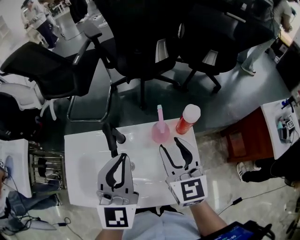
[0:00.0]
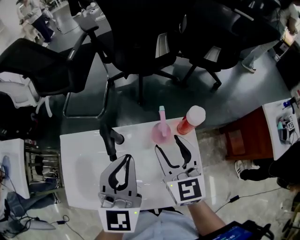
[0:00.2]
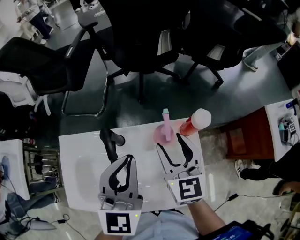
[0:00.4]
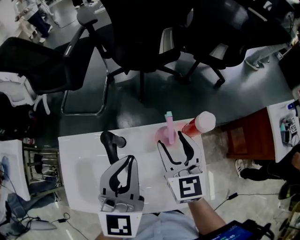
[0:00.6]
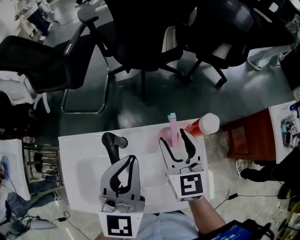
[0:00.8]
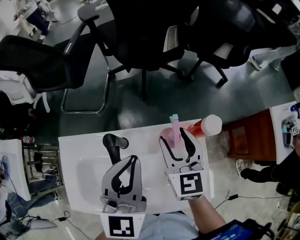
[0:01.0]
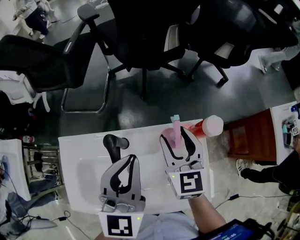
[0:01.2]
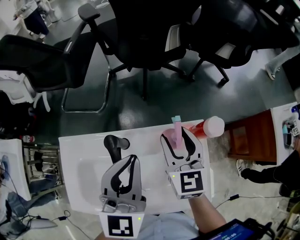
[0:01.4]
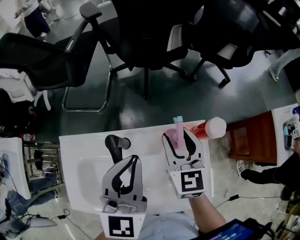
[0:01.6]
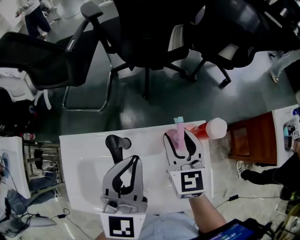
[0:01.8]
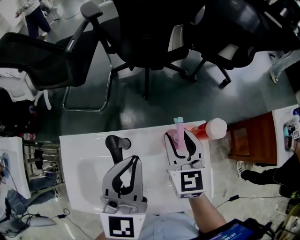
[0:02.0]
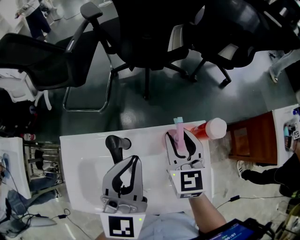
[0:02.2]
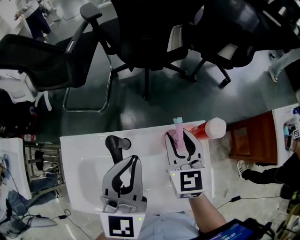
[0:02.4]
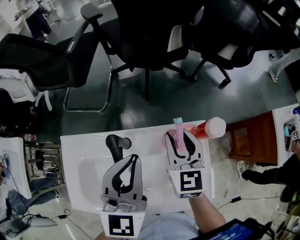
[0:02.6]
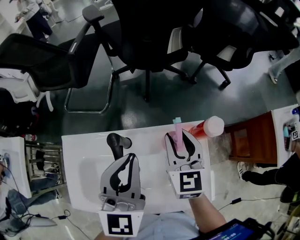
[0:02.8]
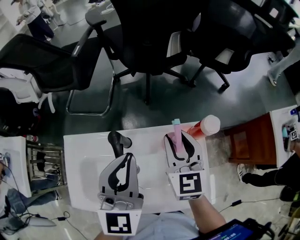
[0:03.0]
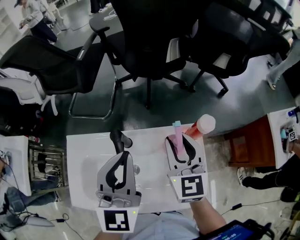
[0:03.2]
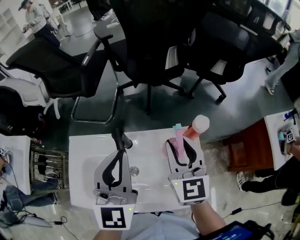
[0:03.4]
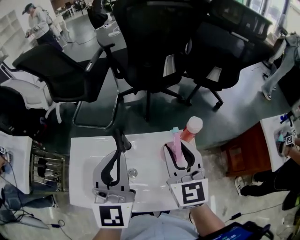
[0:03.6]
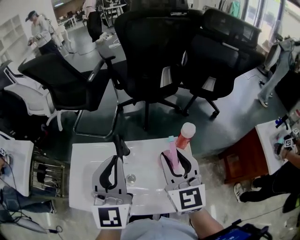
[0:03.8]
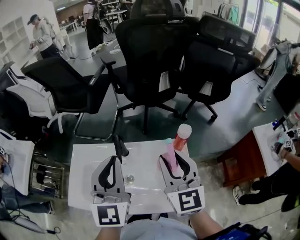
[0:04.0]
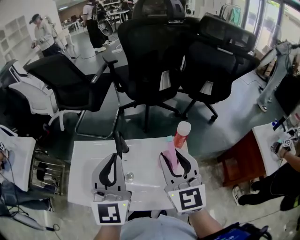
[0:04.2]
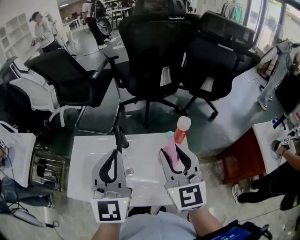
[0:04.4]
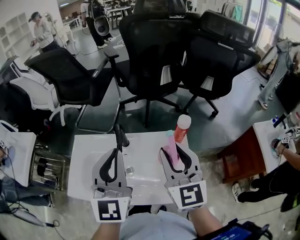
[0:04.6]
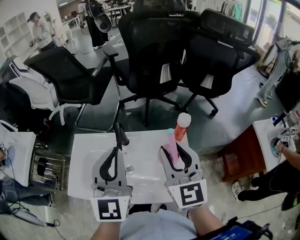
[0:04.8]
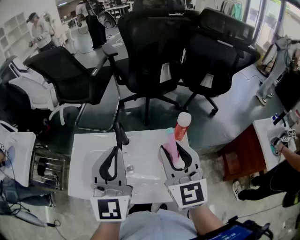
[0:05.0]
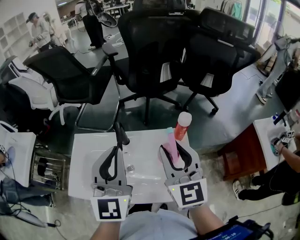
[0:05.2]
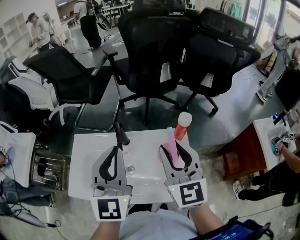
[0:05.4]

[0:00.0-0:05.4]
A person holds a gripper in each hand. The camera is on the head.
0:00.0 to 0:01.4: The left gripper goes some 5 cm forward, while the right gripper moves forward and downward, approximately 10 cm.
0:01.4 to 0:02.8: The two grippers keep their place.
0:02.8 to 0:04.0: The two grippers go about 15 cm backward and upward.
0:04.0 to 0:05.4: There are only small adjustments of the grippers.

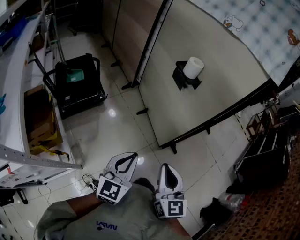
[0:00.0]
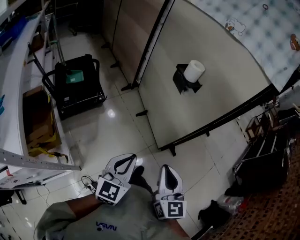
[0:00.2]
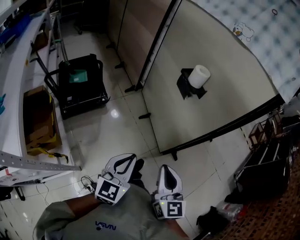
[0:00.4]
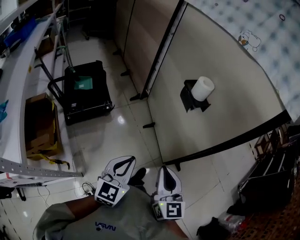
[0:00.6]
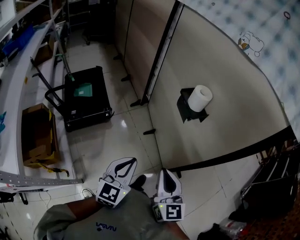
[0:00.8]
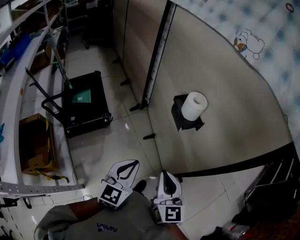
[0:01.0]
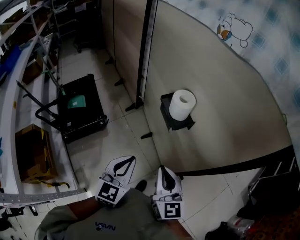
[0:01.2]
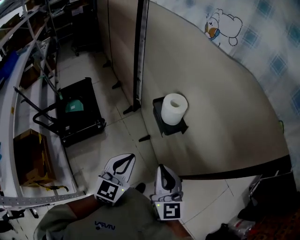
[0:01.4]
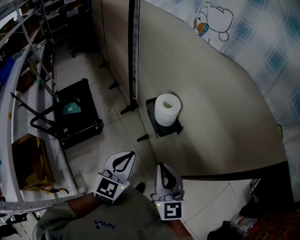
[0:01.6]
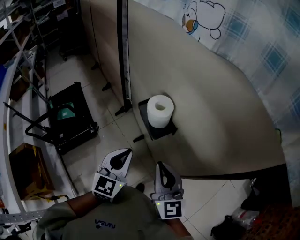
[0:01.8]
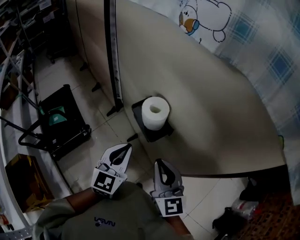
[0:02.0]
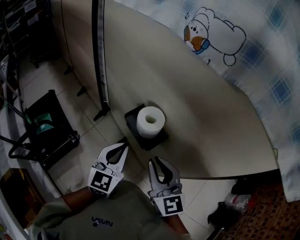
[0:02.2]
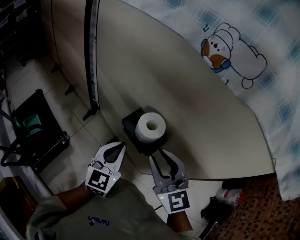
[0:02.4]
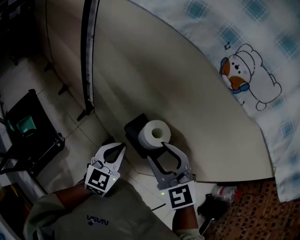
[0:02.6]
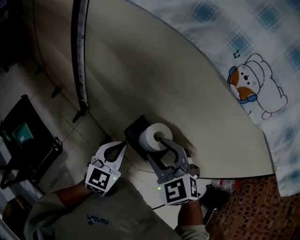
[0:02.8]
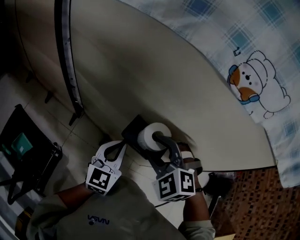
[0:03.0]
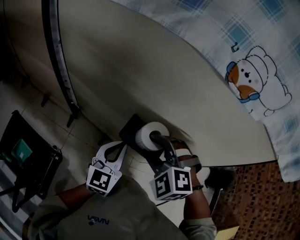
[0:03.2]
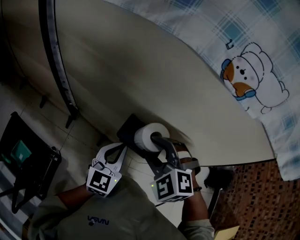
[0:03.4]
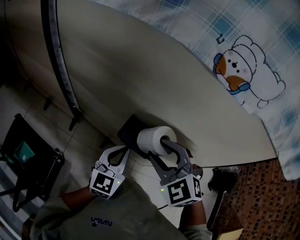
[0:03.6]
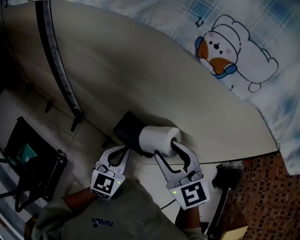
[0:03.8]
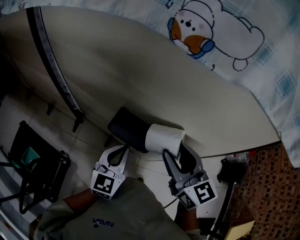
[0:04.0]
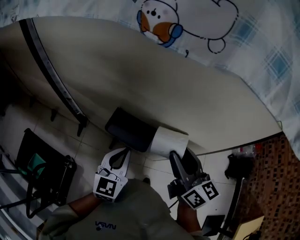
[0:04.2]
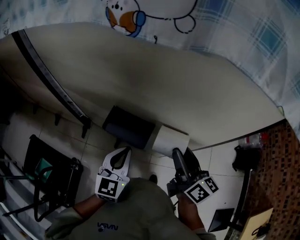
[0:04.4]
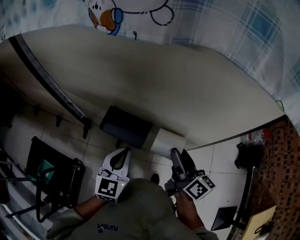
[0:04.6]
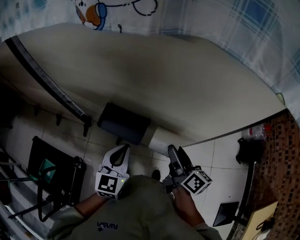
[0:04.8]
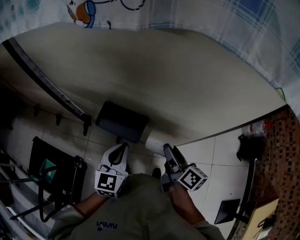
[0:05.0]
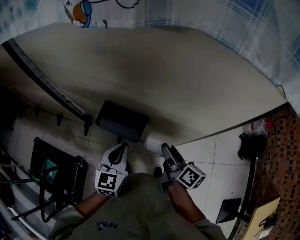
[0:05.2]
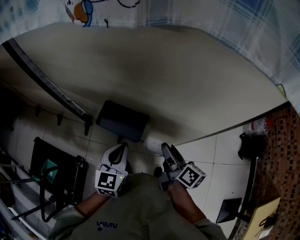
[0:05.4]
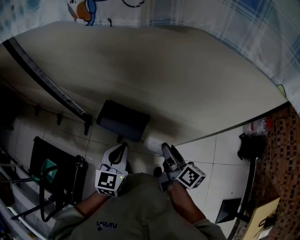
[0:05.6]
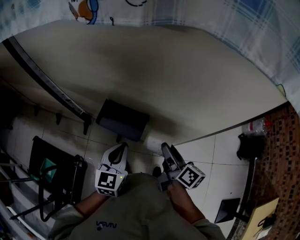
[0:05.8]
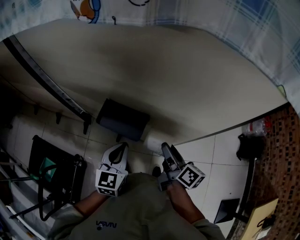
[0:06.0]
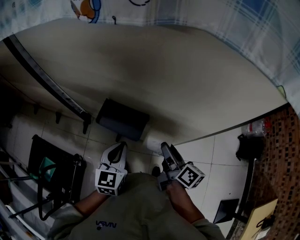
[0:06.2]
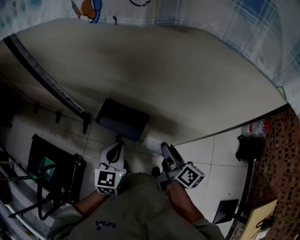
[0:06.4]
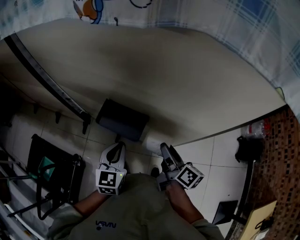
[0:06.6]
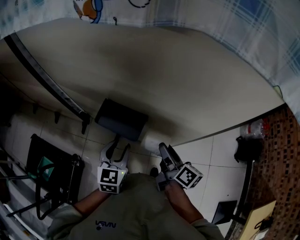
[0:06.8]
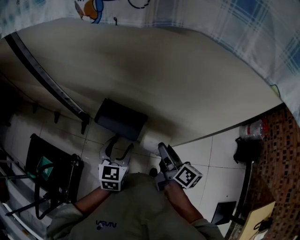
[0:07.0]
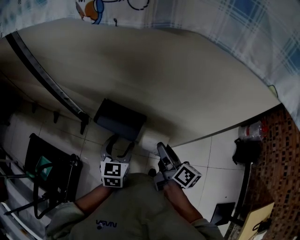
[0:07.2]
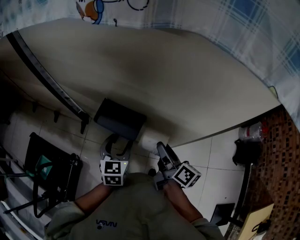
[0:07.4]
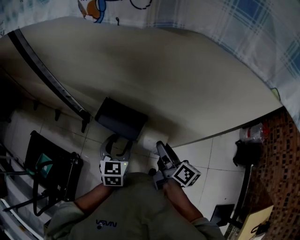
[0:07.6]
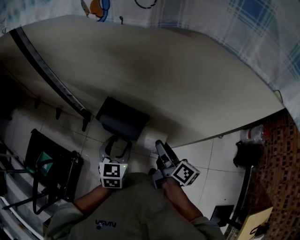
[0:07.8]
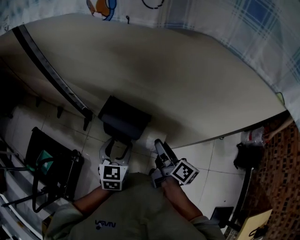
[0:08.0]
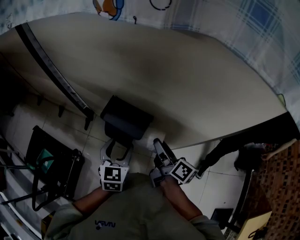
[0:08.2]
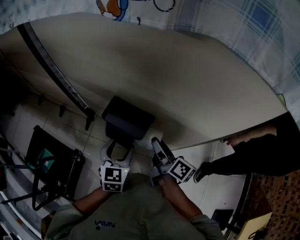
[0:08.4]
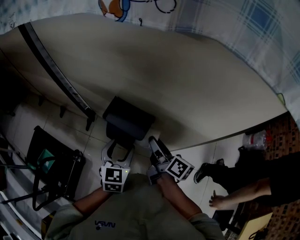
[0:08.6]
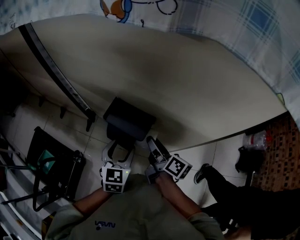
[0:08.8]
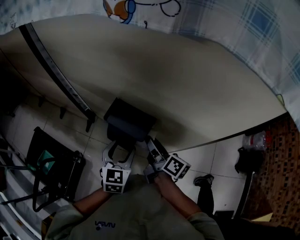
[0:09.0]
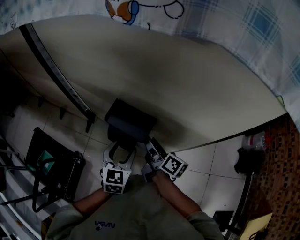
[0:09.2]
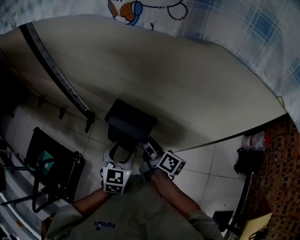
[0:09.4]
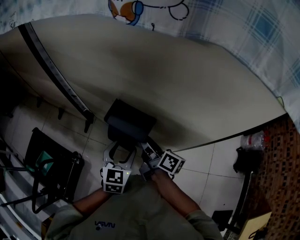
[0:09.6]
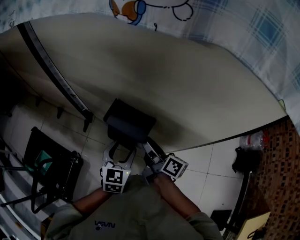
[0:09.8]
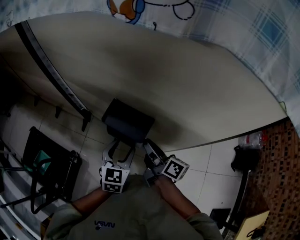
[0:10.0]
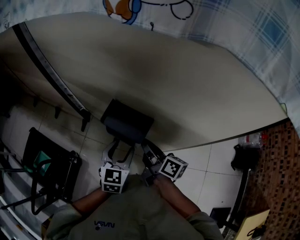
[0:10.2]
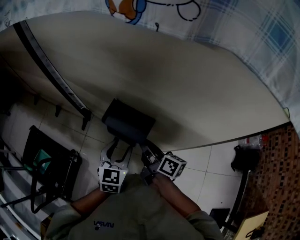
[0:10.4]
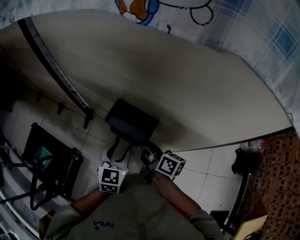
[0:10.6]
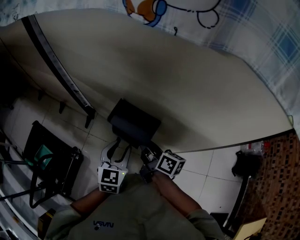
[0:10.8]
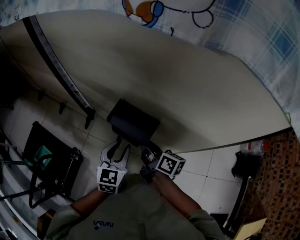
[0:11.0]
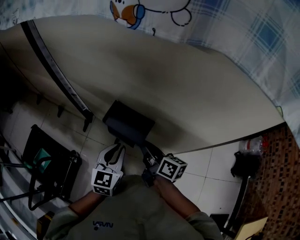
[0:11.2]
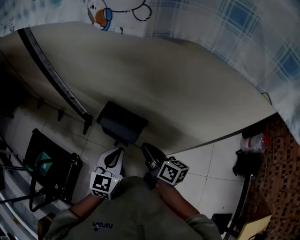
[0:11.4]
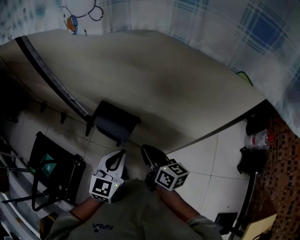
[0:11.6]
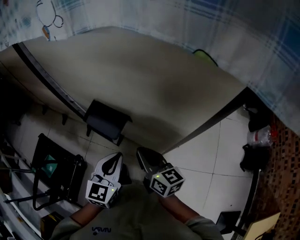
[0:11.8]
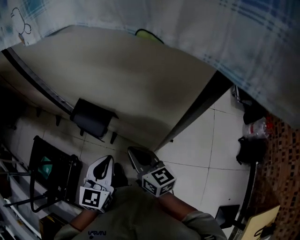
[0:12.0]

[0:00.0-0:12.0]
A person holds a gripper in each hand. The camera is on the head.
0:00.0 to 0:01.6: Both grippers travel together forward, some 35 cm.
0:01.6 to 0:03.0: The left gripper ends up about 20 cm from where it was, and swivels some 30 degrees; the right gripper ends up some 20 cm from where it was, angles its fingers downward, by about 50 degrees, and opens up.
0:03.0 to 0:04.4: The right gripper moves to the right, some 20 cm, and twists roughly 90 degrees clockwise, seen from behind. The left gripper is displaced to the right by roughly 10 cm.
0:04.4 to 0:06.0: The right gripper is displaced downward by about 10 cm, and changes its angle by approximately 20 degrees.
0:06.0 to 0:07.6: The left gripper opens up.
0:07.6 to 0:09.0: The right gripper shifts roughly 5 cm to the left.
0:09.0 to 0:10.4: The right gripper closes its fingers.
0:10.4 to 0:12.0: The right gripper goes some 15 cm backward and to the right, and swivels about 30 degrees; the left gripper moves backward, to the right and upward, roughly 15 cm, and closes.

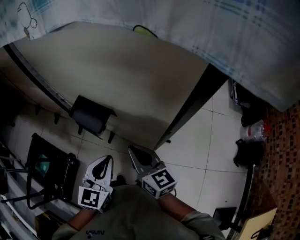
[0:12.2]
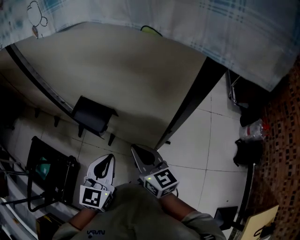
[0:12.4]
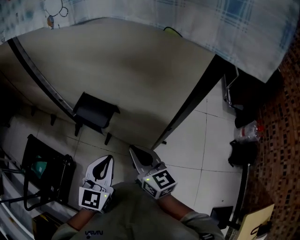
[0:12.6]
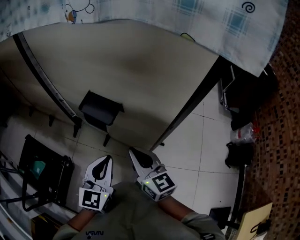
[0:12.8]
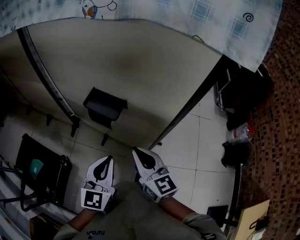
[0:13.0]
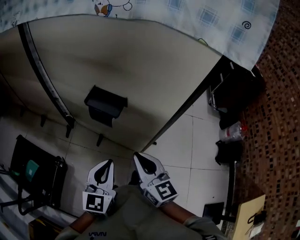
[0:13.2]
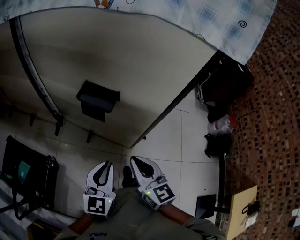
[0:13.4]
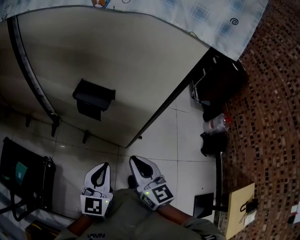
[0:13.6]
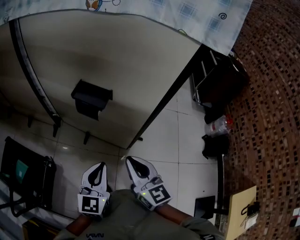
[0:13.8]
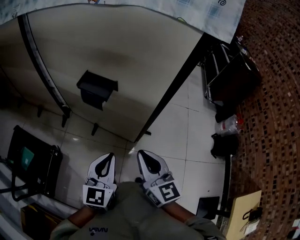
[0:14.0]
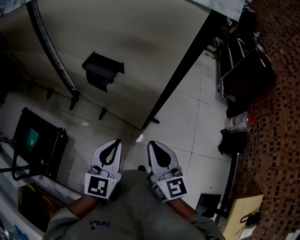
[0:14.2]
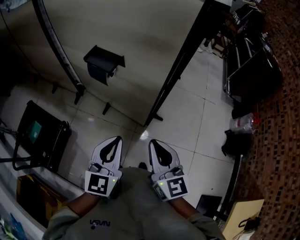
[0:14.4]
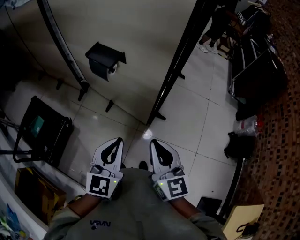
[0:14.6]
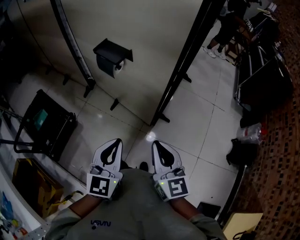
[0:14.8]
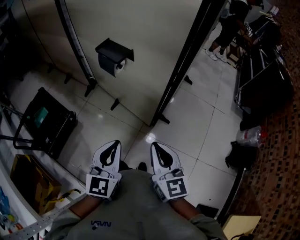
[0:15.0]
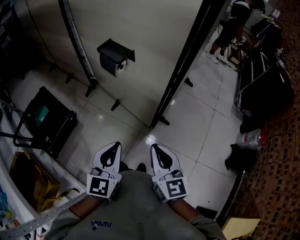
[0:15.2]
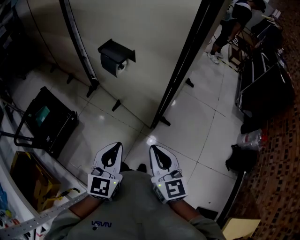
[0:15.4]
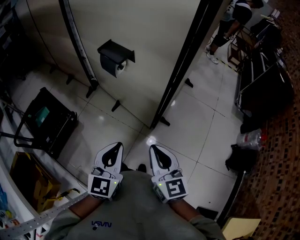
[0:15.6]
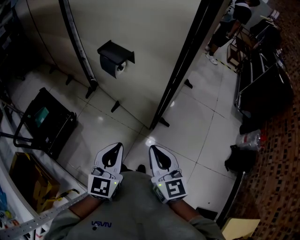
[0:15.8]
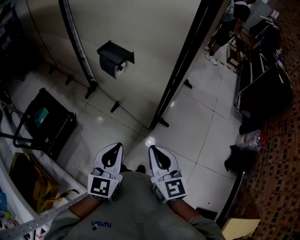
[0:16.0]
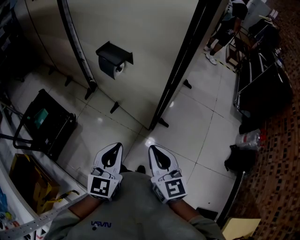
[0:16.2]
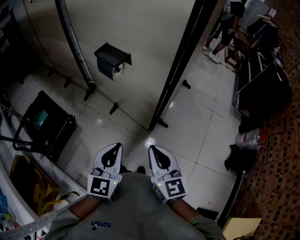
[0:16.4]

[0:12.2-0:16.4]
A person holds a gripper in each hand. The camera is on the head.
0:12.2 to 0:13.6: The grippers both shift backward and to the left by approximately 15 cm. The right gripper swivels roughly 20 degrees.
0:13.6 to 0:15.0: The two grippers go about 15 cm to the right and backward.
0:15.0 to 0:16.4: There are only small adjustments of the grippers.

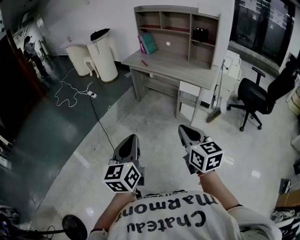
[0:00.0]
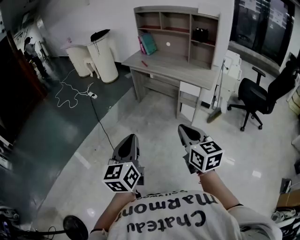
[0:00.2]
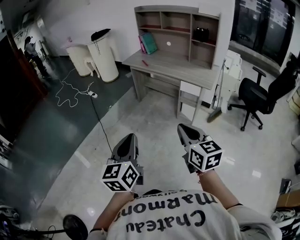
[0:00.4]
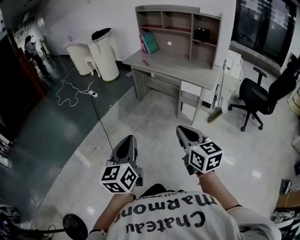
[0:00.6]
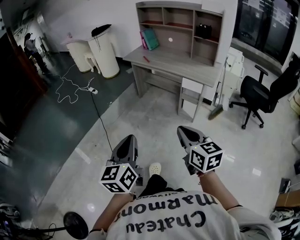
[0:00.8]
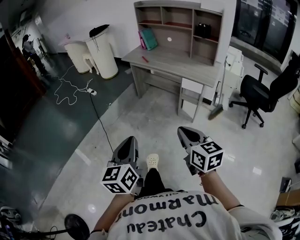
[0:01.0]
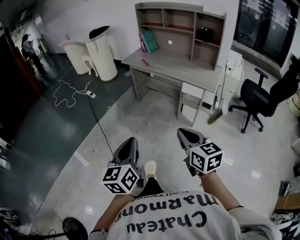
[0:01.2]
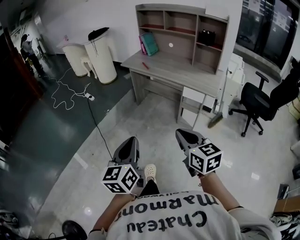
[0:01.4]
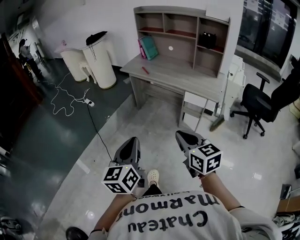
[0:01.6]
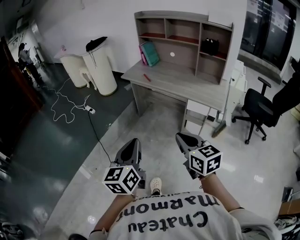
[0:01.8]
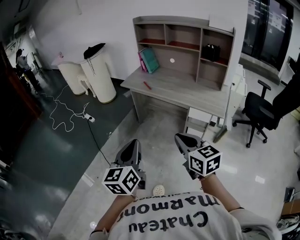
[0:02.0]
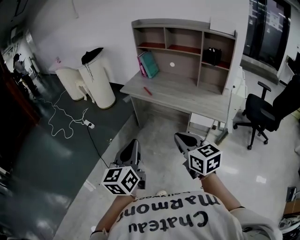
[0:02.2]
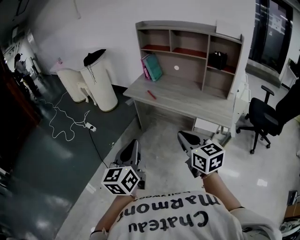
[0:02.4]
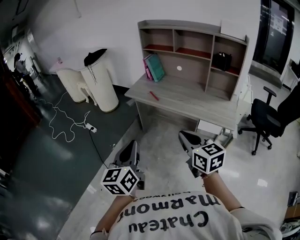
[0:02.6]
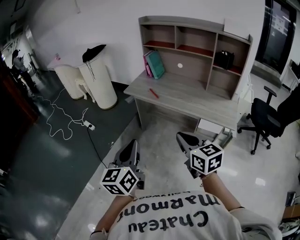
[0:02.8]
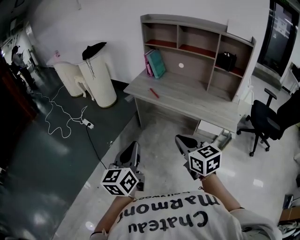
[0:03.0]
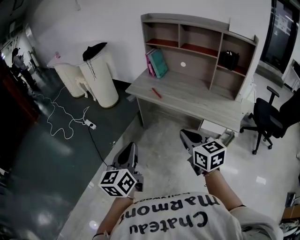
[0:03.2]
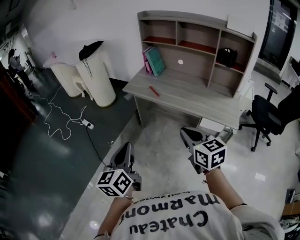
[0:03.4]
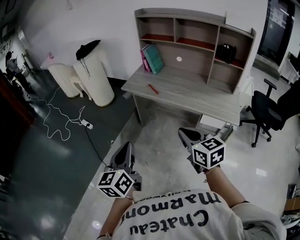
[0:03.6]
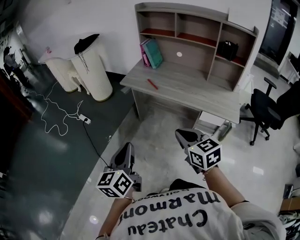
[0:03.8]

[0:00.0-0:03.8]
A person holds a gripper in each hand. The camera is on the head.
0:00.0 to 0:01.2: The right gripper shifts by some 5 cm, while the left gripper ends up approximately 5 cm from where it was.
0:01.2 to 0:02.6: Both grippers move forward, roughly 35 cm.
0:02.6 to 0:03.8: Both grippers travel together downward, some 5 cm.
